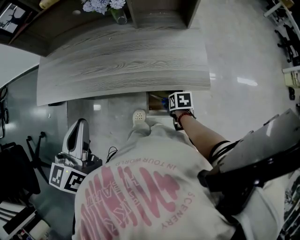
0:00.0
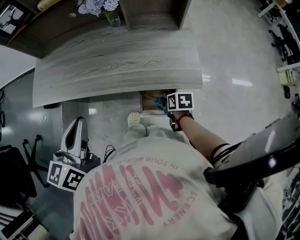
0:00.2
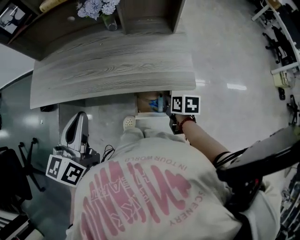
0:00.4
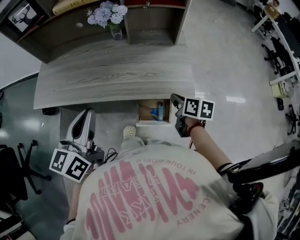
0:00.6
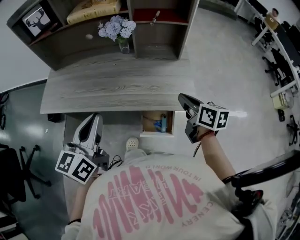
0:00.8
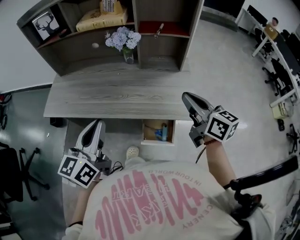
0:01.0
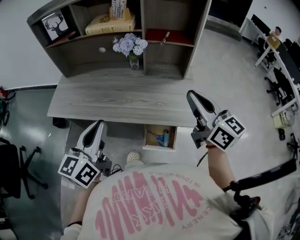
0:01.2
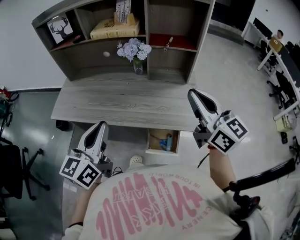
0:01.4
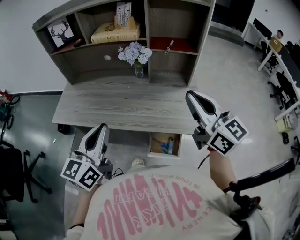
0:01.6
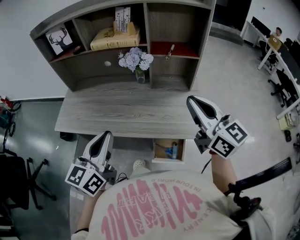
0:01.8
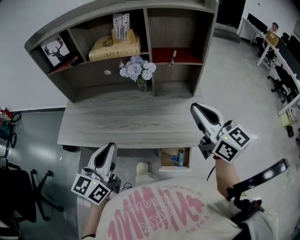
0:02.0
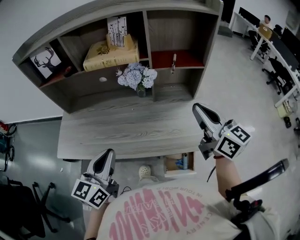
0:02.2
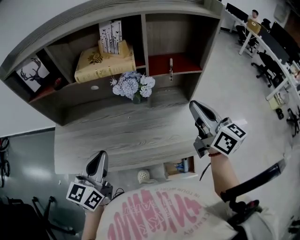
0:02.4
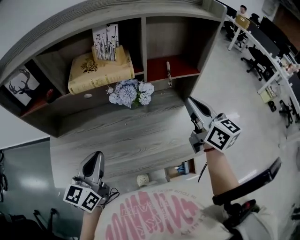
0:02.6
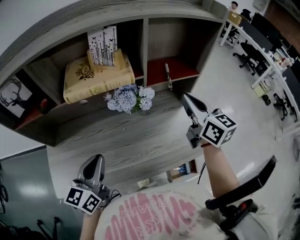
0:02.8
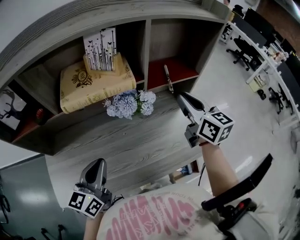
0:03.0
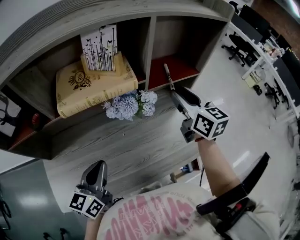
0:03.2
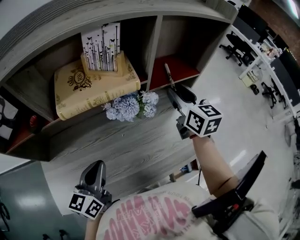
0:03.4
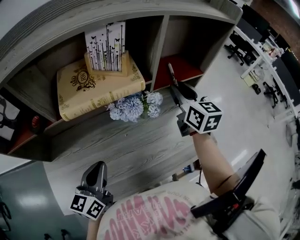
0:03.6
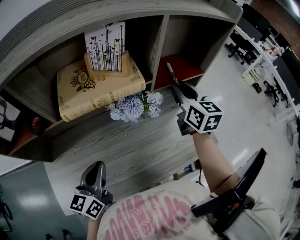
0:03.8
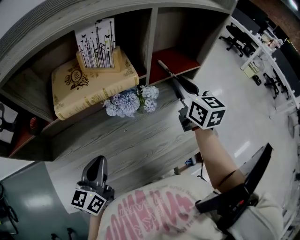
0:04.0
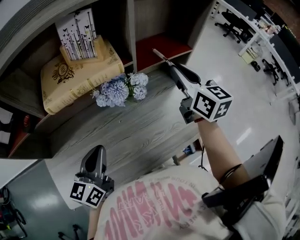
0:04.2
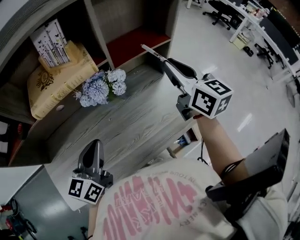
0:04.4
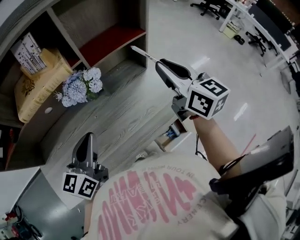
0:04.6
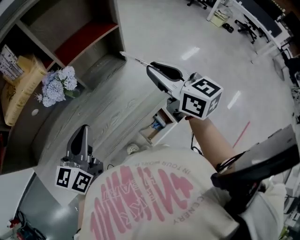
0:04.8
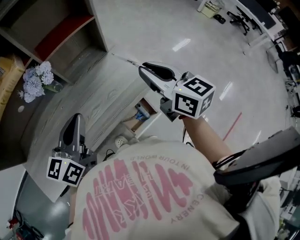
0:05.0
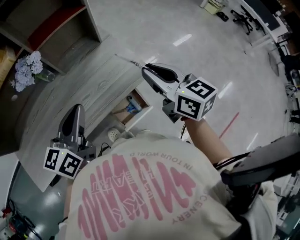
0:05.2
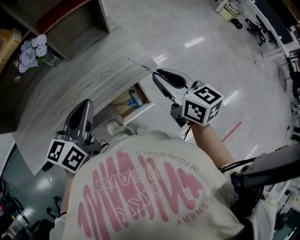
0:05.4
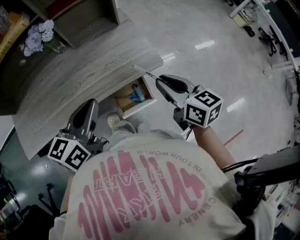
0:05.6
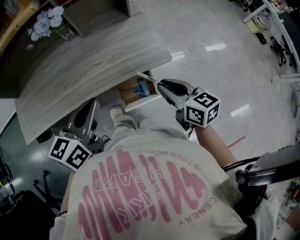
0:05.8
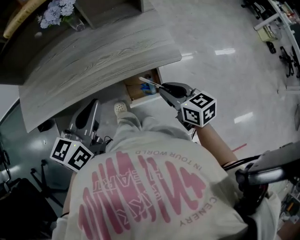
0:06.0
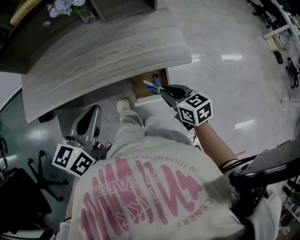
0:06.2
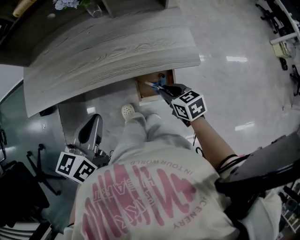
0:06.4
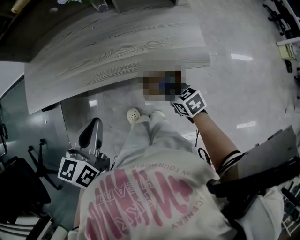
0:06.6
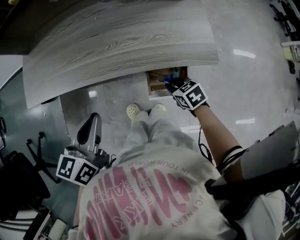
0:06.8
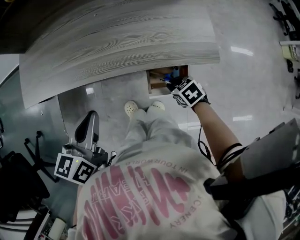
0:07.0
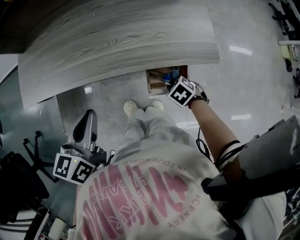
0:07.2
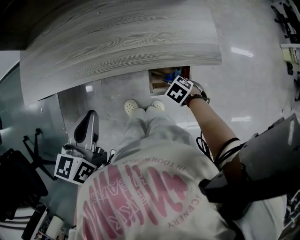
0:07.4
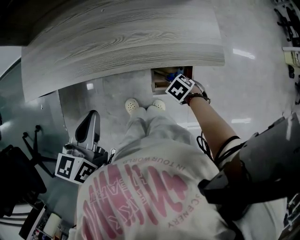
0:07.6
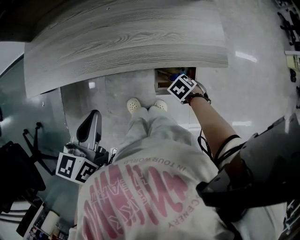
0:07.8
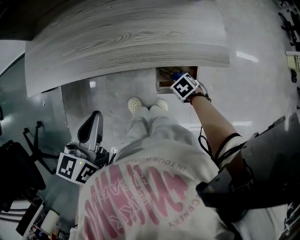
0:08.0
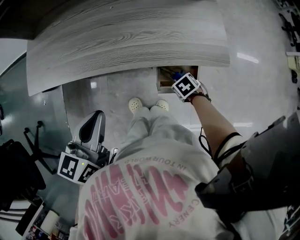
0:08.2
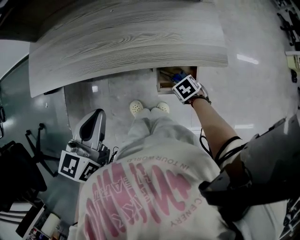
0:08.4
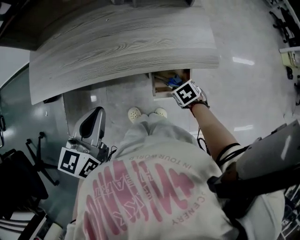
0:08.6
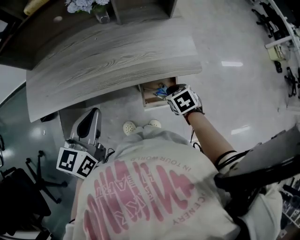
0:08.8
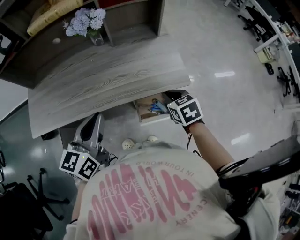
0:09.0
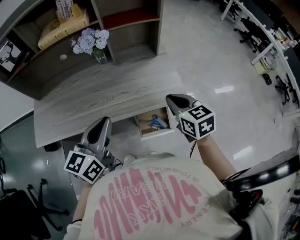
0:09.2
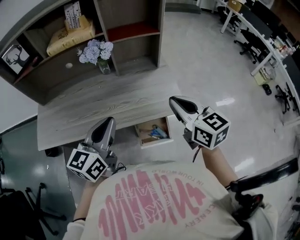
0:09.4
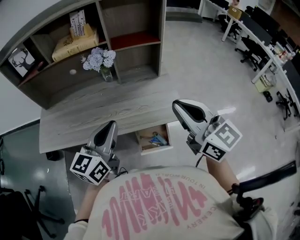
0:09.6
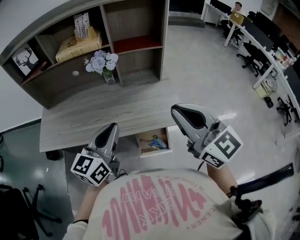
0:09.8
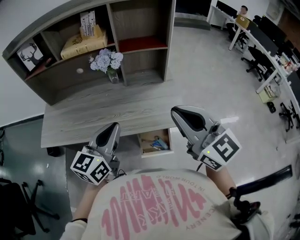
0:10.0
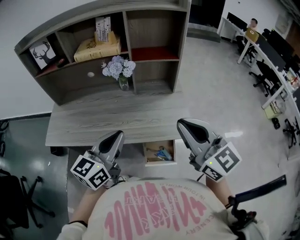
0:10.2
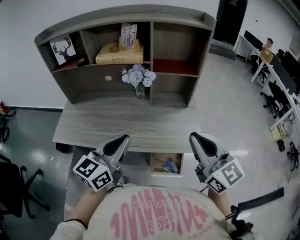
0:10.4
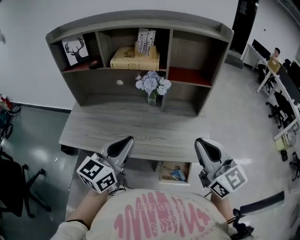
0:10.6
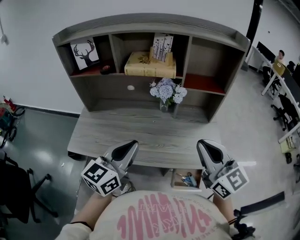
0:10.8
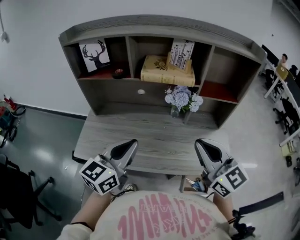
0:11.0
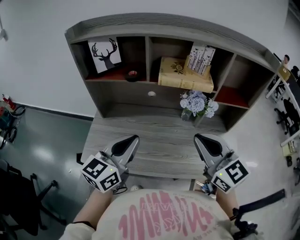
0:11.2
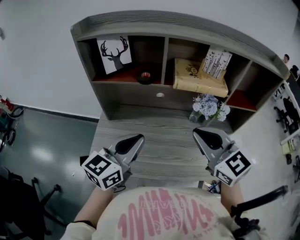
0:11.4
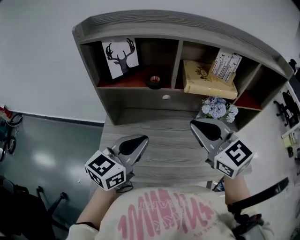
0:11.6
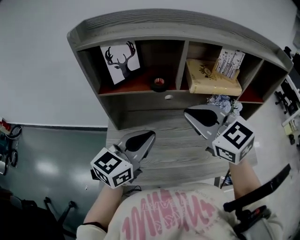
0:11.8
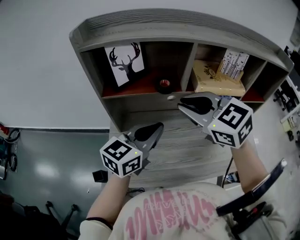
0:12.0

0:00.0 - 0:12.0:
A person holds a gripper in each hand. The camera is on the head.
0:00.0 - 0:01.6: The right gripper travels upward by some 50 cm, tips its fingers upward by some 70 degrees, and closes its fingers. The left gripper goes about 5 cm upward.
0:01.6 - 0:03.0: The left gripper changes place by roughly 30 cm, and turns by about 30 degrees. Meanwhile the right gripper shifts by roughly 25 cm, and changes its angle by approximately 40 degrees.
0:03.0 - 0:04.4: The right gripper reaches roughly 5 cm forward, then returns, and opens, then closes once more. Meanwhile the left gripper shifts by some 5 cm.
0:04.4 - 0:06.0: The right gripper goes roughly 40 cm backward, downward and to the right, and changes its angle by roughly 40 degrees, while the left gripper moves to the right and backward, some 30 cm.
0:06.0 - 0:07.6: The left gripper shifts by approximately 15 cm, and rotates roughly 20 degrees. Meanwhile the right gripper moves downward, about 25 cm, and angles its fingers downward, by roughly 50 degrees.
0:07.6 - 0:09.0: The left gripper ends up some 10 cm from where it was, while the right gripper shifts roughly 20 cm upward, and angles its fingers upward, by roughly 30 degrees.
0:09.0 - 0:10.4: The right gripper is displaced upward by about 30 cm, and tilts its fingers roughly 50 degrees upward; the left gripper goes about 10 cm upward.
0:10.4 - 0:12.0: The pair of grippers is taken to the left and forward, some 50 cm. The right gripper swivels about 30 degrees.

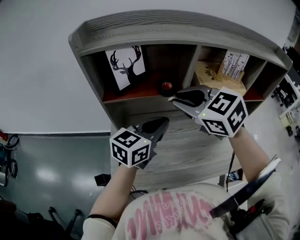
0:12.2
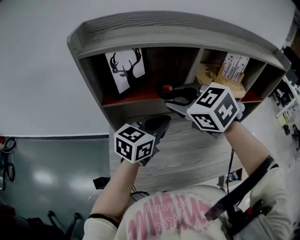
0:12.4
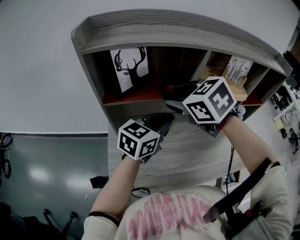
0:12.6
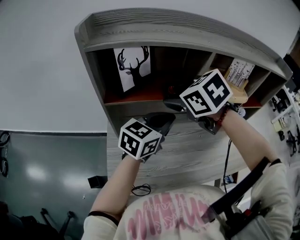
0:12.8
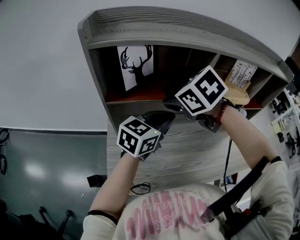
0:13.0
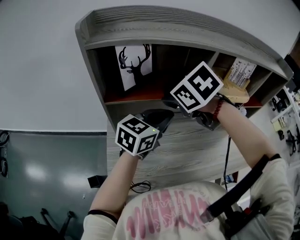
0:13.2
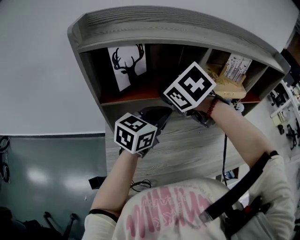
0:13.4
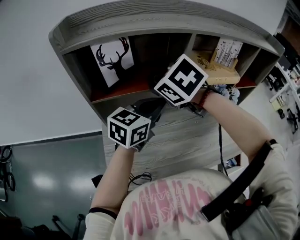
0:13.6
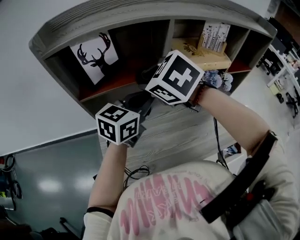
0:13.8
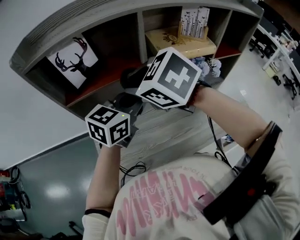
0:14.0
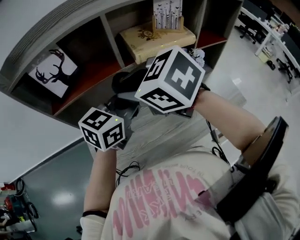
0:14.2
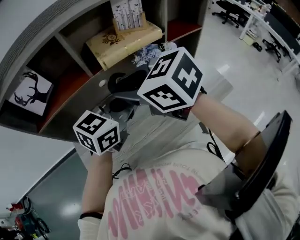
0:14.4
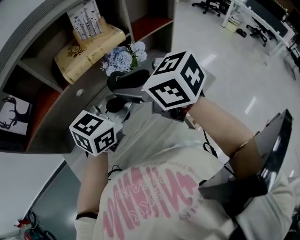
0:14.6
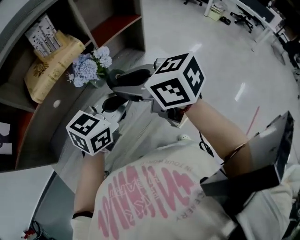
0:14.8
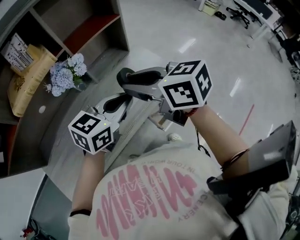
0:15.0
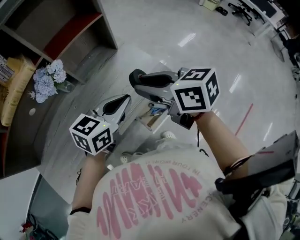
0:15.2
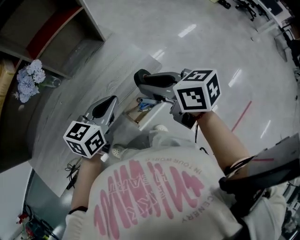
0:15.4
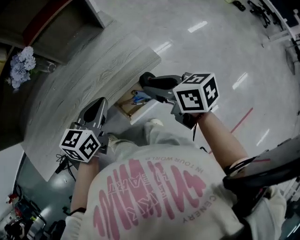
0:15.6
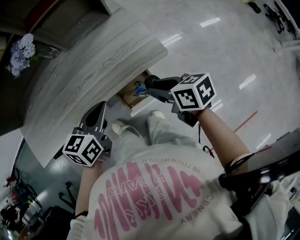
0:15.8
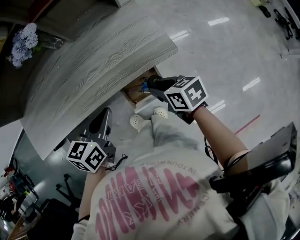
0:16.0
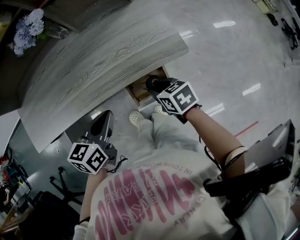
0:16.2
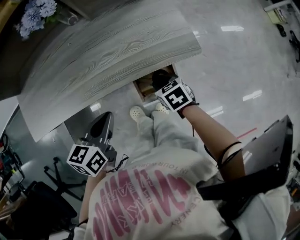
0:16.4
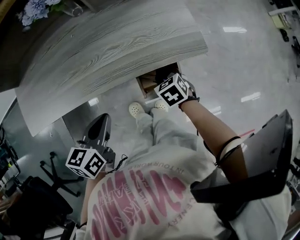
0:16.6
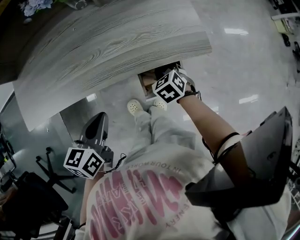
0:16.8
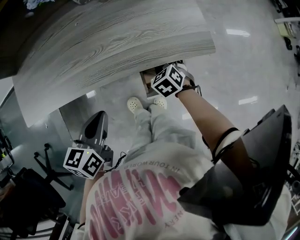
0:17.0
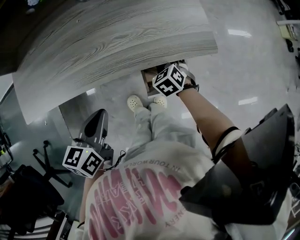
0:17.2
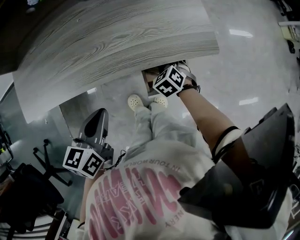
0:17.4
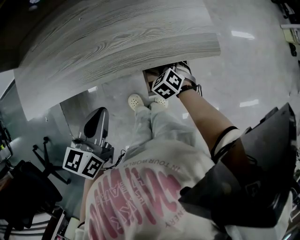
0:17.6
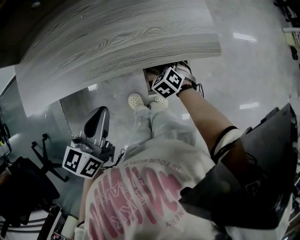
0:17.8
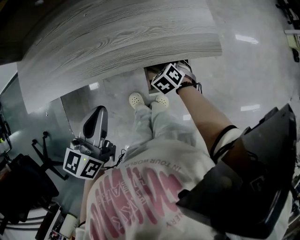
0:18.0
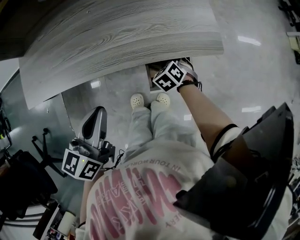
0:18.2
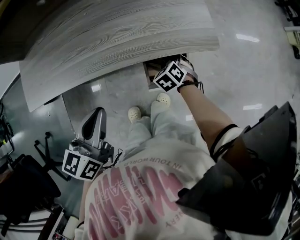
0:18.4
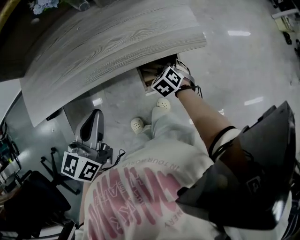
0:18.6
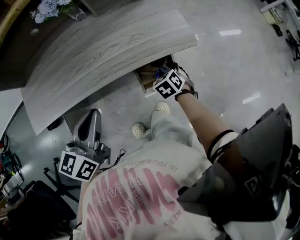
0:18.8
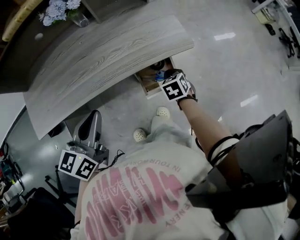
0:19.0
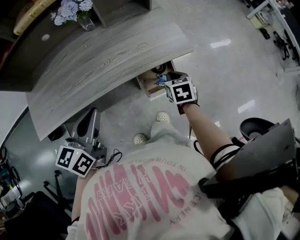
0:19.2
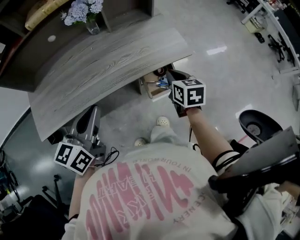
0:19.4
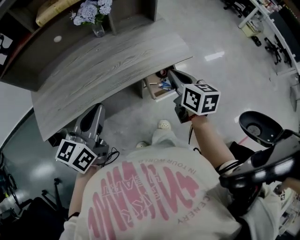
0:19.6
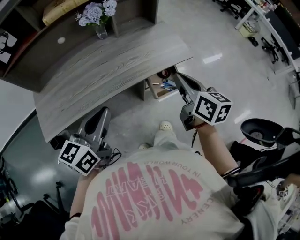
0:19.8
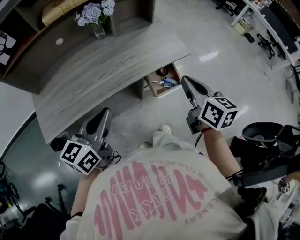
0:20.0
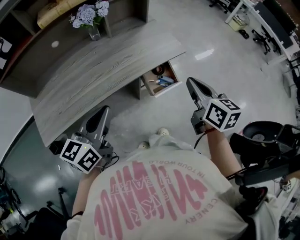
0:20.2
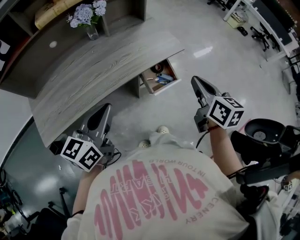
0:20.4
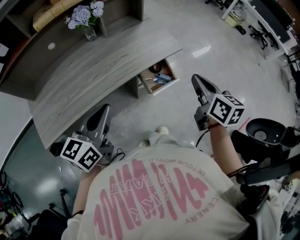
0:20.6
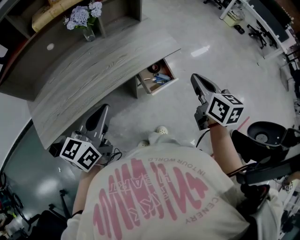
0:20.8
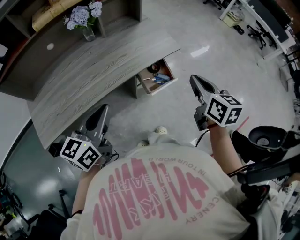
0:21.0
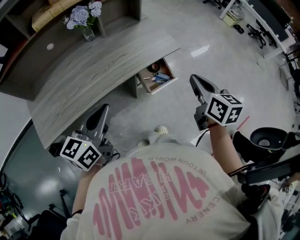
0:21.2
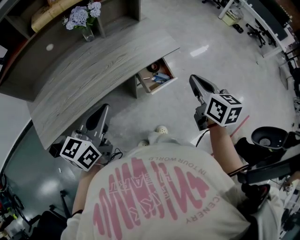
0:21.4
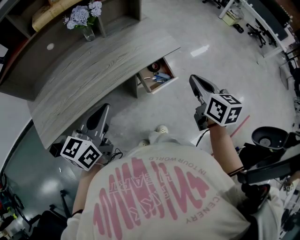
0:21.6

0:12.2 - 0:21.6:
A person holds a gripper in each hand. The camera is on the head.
0:12.2 - 0:13.8: The right gripper opens, then closes again.
0:13.8 - 0:15.4: Both grippers are carried to the right, about 60 cm. The right gripper rotates around the line of its fingers by roughly 60 degrees, clockwise from behind, while the left gripper rotates approximately 20 degrees.
0:15.4 - 0:17.0: The right gripper heads downward, covering about 30 cm, and points its fingers roughly 40 degrees further downward. The left gripper travels to the left, backward and downward by approximately 25 cm, and swivels approximately 50 degrees.
0:17.0 - 0:18.4: The left gripper is displaced upward by approximately 5 cm.
0:18.4 - 0:20.0: The left gripper heads to the left, upward and backward, covering about 15 cm, and swivels approximately 30 degrees. The right gripper goes some 40 cm upward and backward, tips its fingers upward by approximately 50 degrees, and closes up.
0:20.0 - 0:21.6: The right gripper is displaced to the right by some 5 cm.

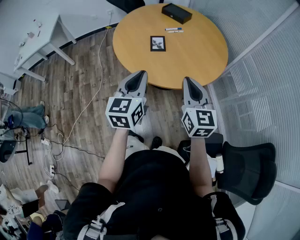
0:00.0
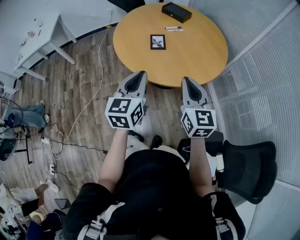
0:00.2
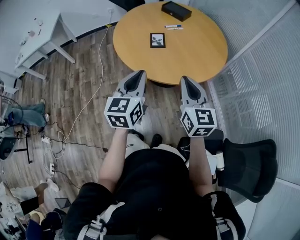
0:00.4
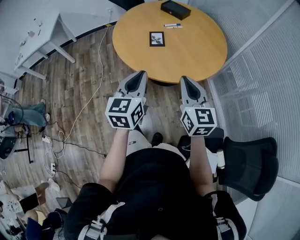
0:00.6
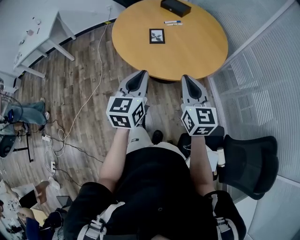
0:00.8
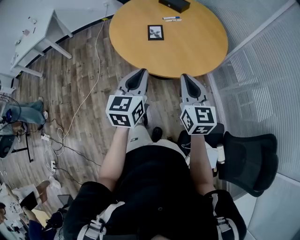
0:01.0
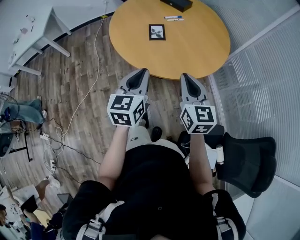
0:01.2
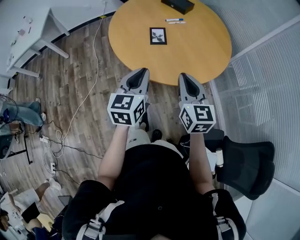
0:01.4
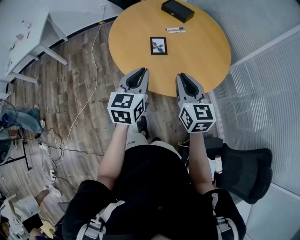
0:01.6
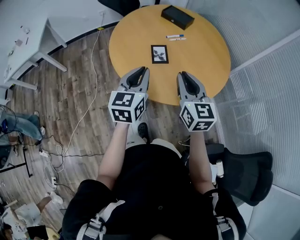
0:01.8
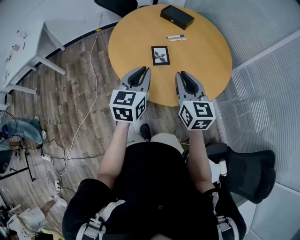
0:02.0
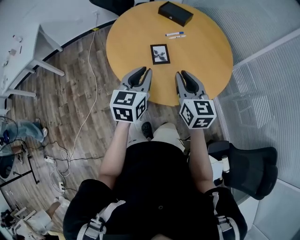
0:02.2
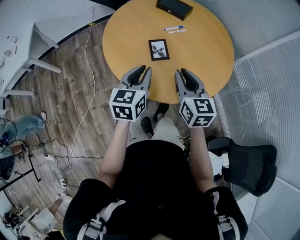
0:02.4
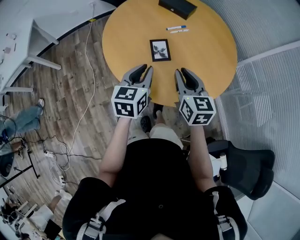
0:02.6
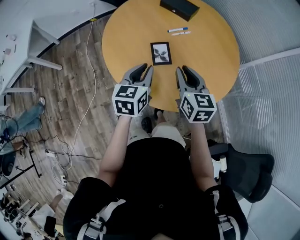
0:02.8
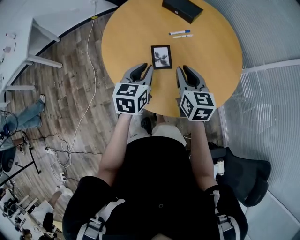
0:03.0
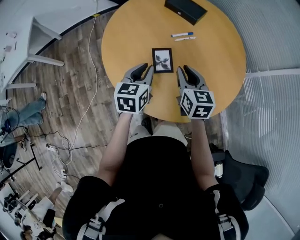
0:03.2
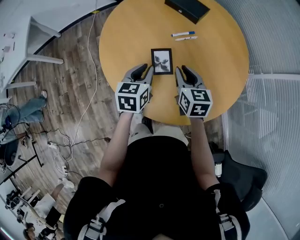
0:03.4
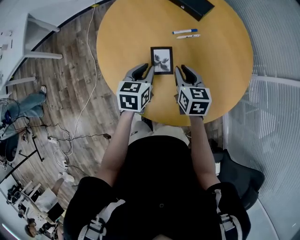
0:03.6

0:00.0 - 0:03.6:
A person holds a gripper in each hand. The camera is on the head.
0:00.0 - 0:01.8: The right gripper travels forward and to the left by about 20 cm. The left gripper shifts about 20 cm forward.
0:01.8 - 0:03.6: Both grippers travel together forward and downward, some 40 cm. The right gripper swivels roughly 30 degrees; the left gripper rotates some 30 degrees.
